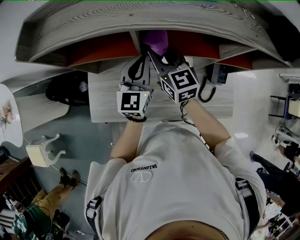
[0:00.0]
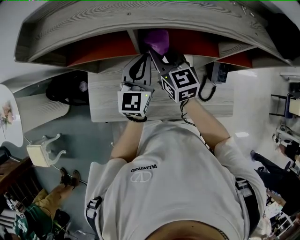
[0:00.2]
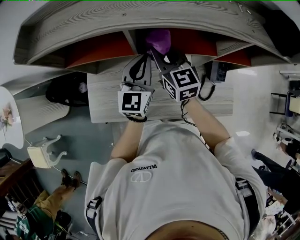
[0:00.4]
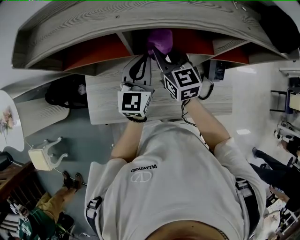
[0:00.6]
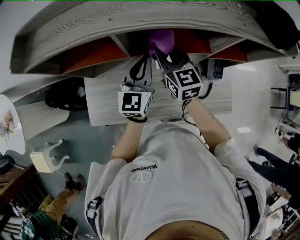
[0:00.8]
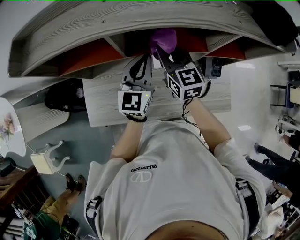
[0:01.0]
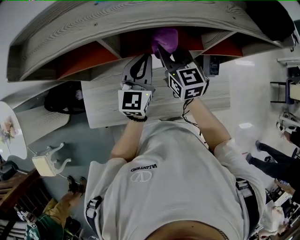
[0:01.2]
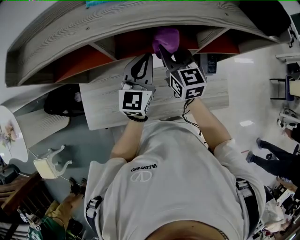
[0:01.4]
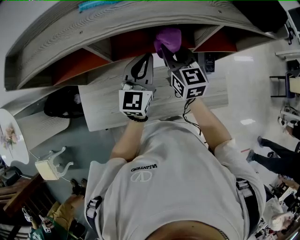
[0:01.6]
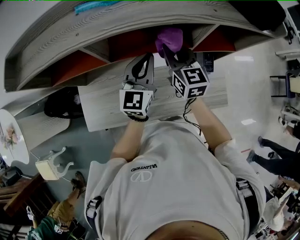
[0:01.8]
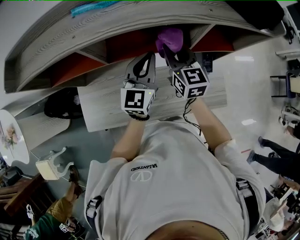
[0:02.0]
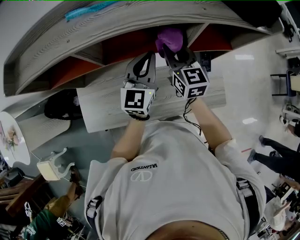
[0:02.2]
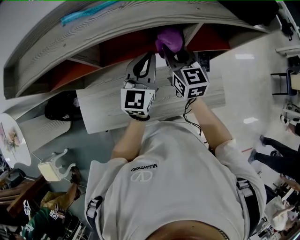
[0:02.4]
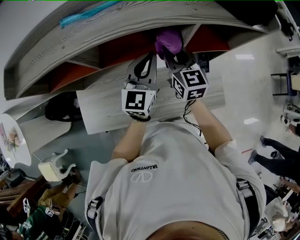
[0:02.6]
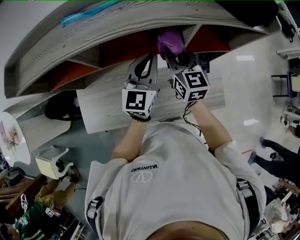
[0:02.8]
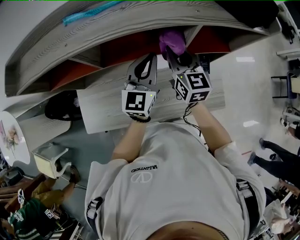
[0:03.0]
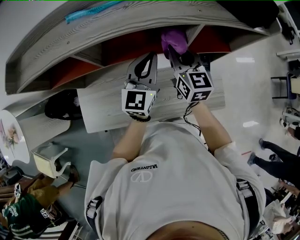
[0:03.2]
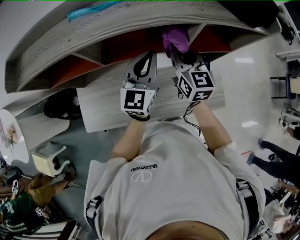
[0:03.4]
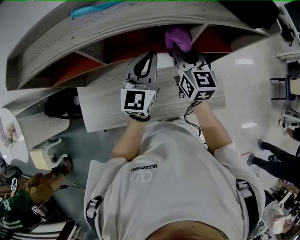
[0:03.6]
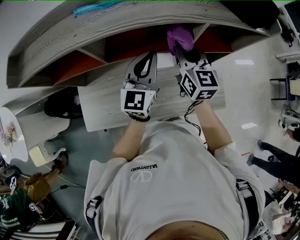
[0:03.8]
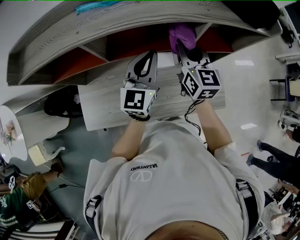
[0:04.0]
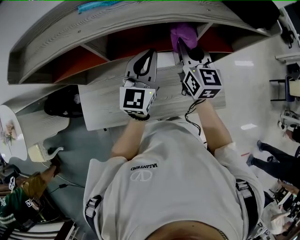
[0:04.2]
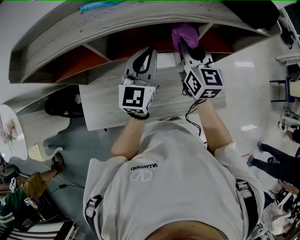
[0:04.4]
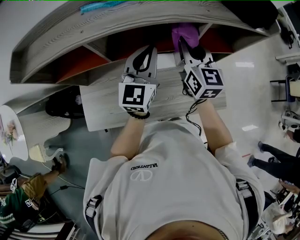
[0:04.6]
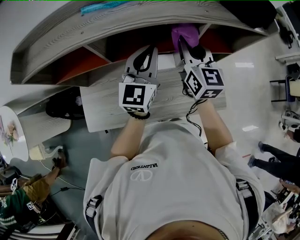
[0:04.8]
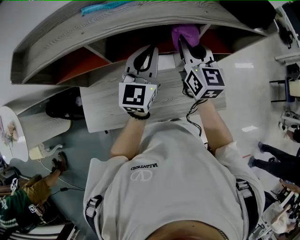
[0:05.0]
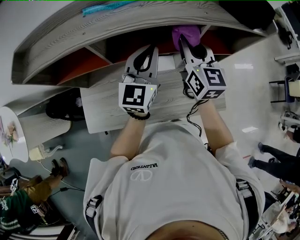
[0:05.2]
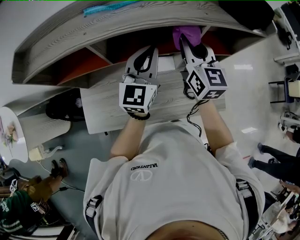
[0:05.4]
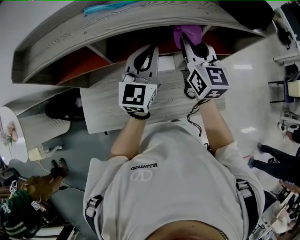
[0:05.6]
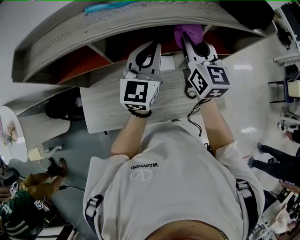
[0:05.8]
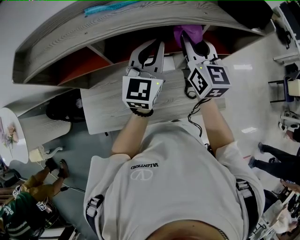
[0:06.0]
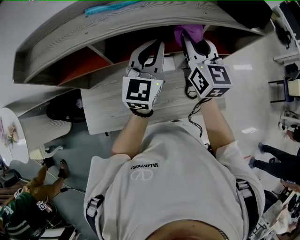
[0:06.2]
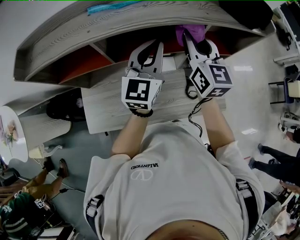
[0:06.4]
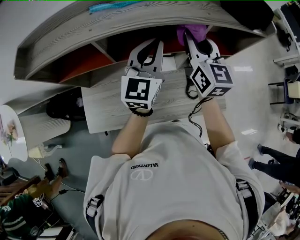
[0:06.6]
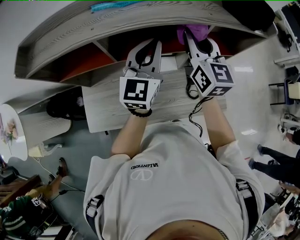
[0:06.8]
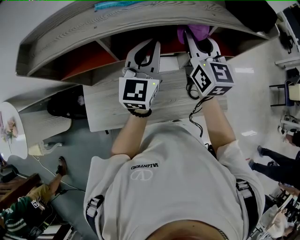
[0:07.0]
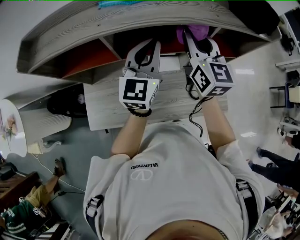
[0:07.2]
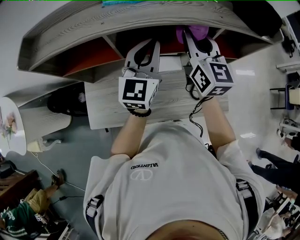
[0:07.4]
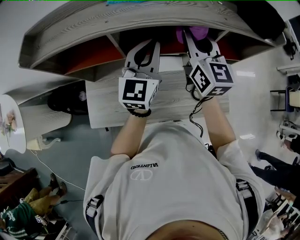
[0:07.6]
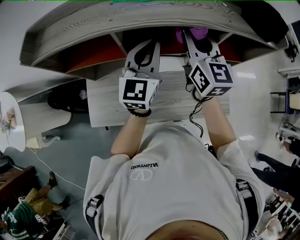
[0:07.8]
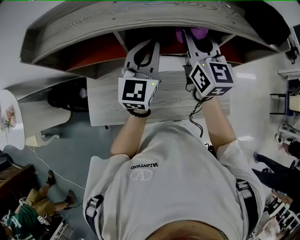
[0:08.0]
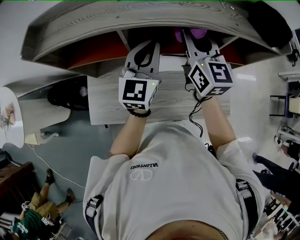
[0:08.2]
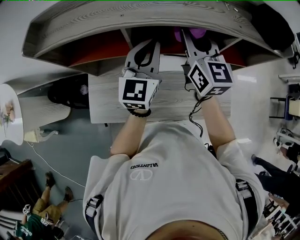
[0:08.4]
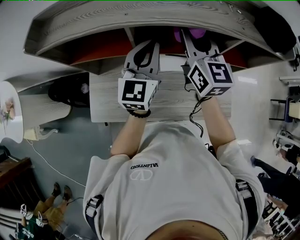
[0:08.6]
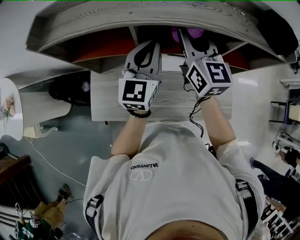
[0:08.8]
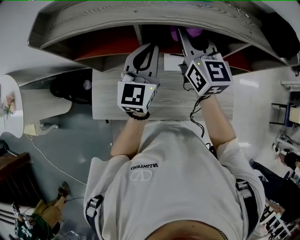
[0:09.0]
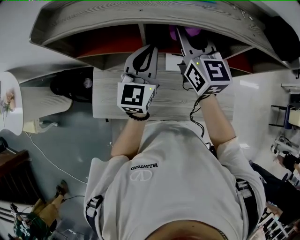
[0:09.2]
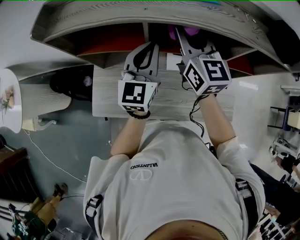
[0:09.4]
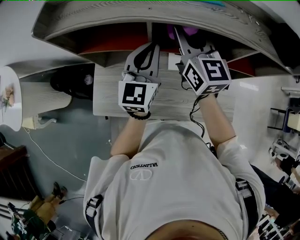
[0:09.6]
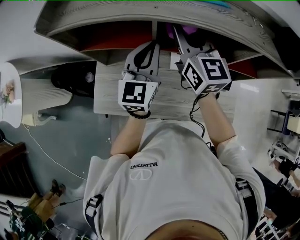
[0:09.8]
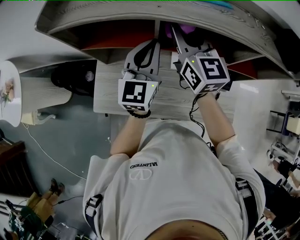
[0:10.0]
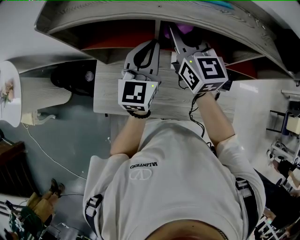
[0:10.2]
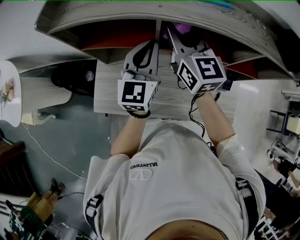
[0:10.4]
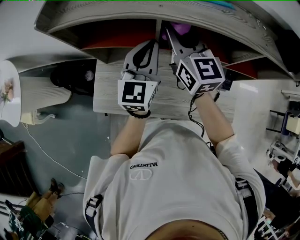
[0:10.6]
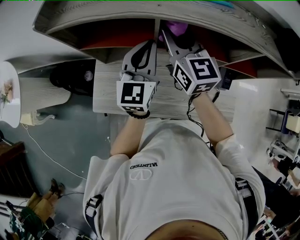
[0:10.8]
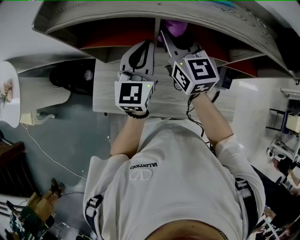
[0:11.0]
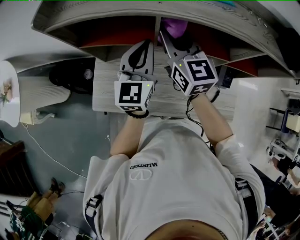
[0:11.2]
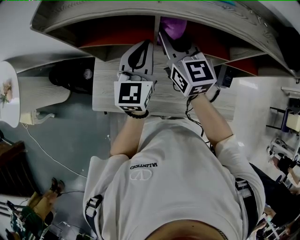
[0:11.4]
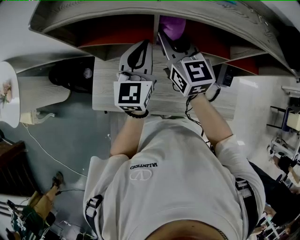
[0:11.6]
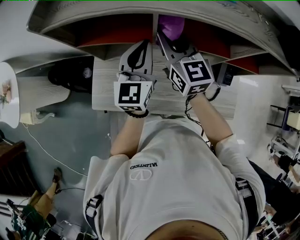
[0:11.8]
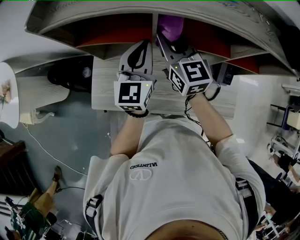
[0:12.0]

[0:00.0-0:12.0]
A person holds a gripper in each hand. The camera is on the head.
0:00.0 to 0:01.6: Both grippers move to the right, some 15 cm.
0:01.6 to 0:03.0: The two grippers go some 5 cm to the right.
0:03.0 to 0:04.4: The left gripper changes place by approximately 5 cm.
0:04.4 to 0:06.0: The left gripper shifts by some 5 cm; the right gripper travels upward by some 5 cm.
0:06.0 to 0:07.6: Both grippers travel together to the left, about 5 cm.
0:07.6 to 0:09.0: Both grippers move to the left, about 10 cm.
0:09.0 to 0:10.4: The left gripper goes approximately 5 cm to the left. The right gripper is displaced to the left by about 10 cm.
0:10.4 to 0:12.0: The right gripper is displaced downward by roughly 5 cm.

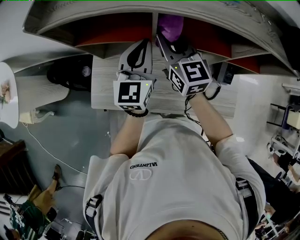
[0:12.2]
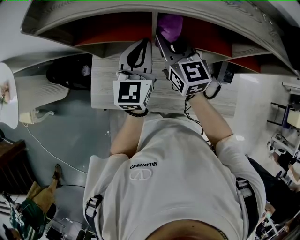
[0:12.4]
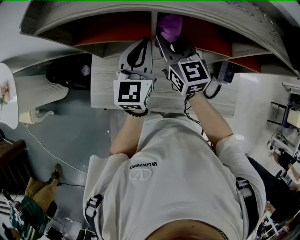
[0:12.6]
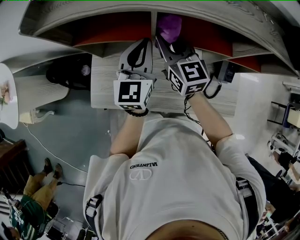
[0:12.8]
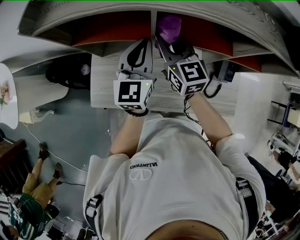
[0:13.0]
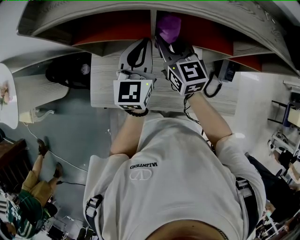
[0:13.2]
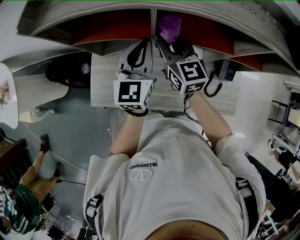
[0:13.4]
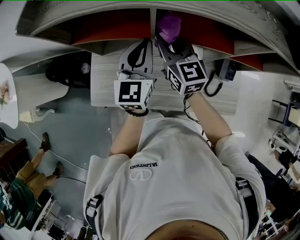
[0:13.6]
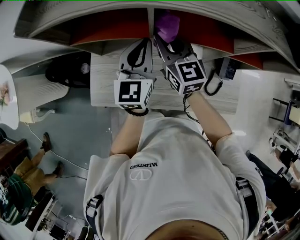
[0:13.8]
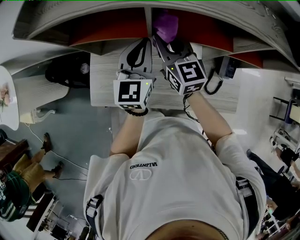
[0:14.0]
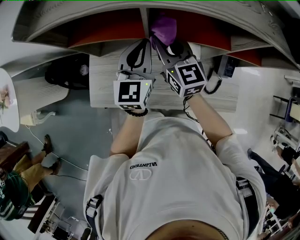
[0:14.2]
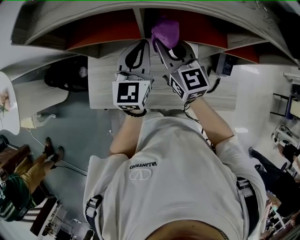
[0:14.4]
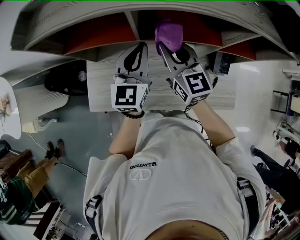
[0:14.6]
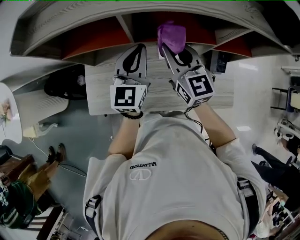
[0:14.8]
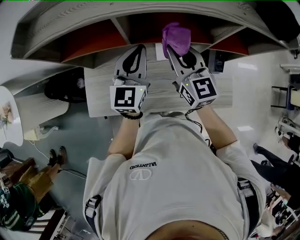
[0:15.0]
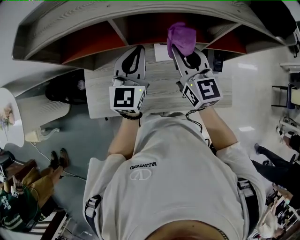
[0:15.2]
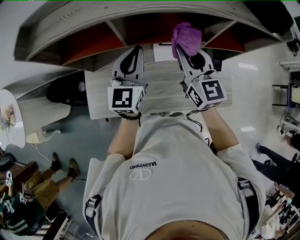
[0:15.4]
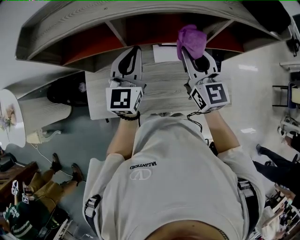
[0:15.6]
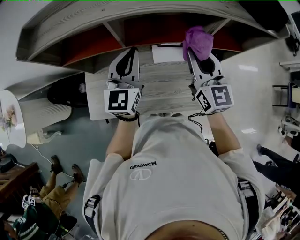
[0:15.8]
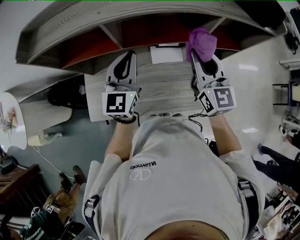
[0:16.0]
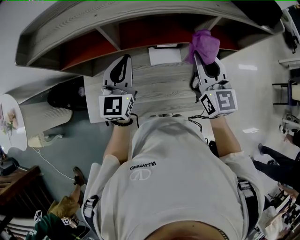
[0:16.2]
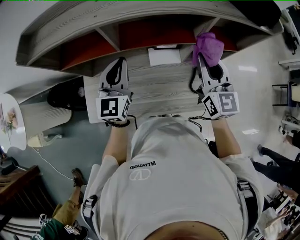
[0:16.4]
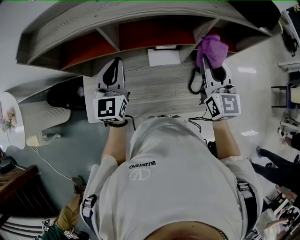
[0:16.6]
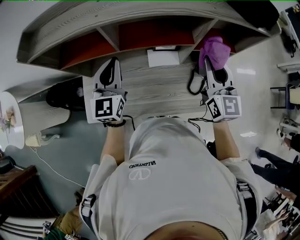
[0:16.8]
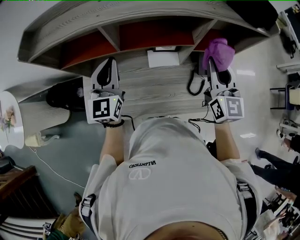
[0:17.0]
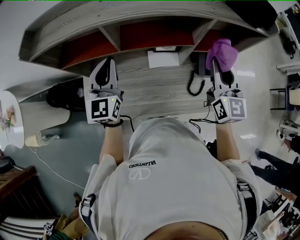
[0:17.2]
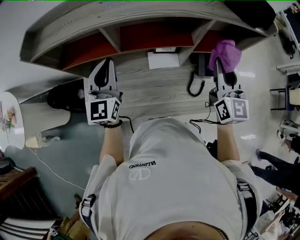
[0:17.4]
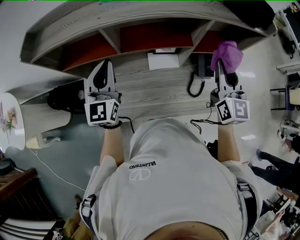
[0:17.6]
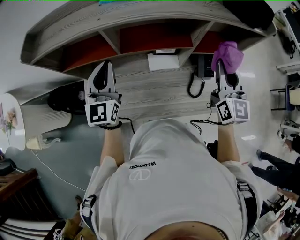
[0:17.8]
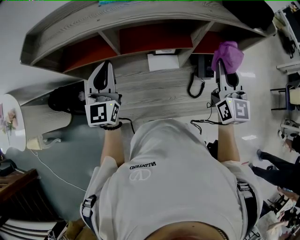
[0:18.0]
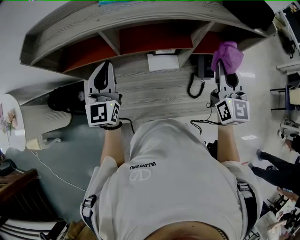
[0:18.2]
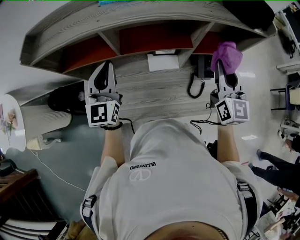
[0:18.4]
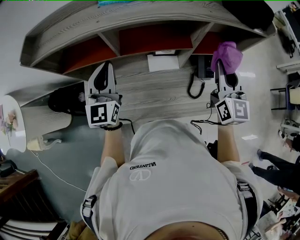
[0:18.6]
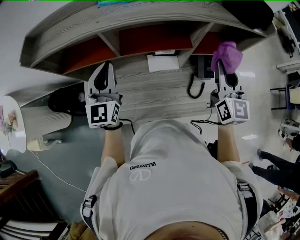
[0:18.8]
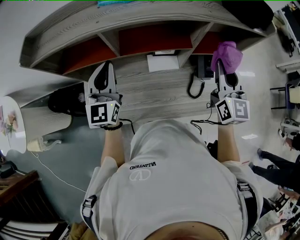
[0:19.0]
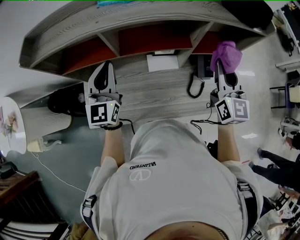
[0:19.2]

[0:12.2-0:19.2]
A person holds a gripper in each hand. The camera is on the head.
0:12.2 to 0:13.6: The grippers stay close to where they were, moving slightly.
0:13.6 to 0:15.0: The right gripper is displaced to the right and backward by roughly 15 cm; the left gripper goes roughly 5 cm to the right.
0:15.0 to 0:16.4: The right gripper travels to the right by approximately 15 cm.
0:16.4 to 0:17.8: The left gripper shifts by roughly 5 cm. The right gripper shifts some 5 cm to the right.
0:17.8 to 0:19.2: The two grippers keep their place.

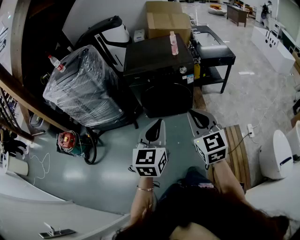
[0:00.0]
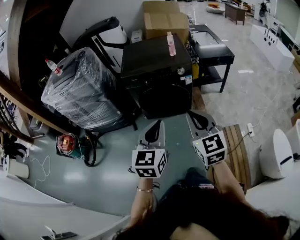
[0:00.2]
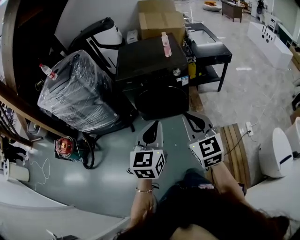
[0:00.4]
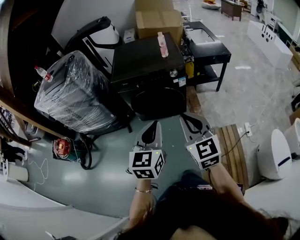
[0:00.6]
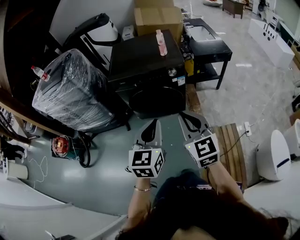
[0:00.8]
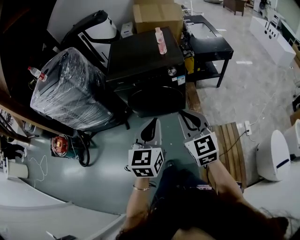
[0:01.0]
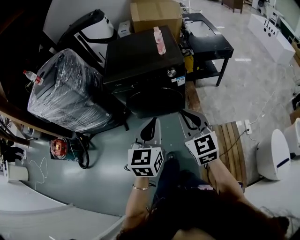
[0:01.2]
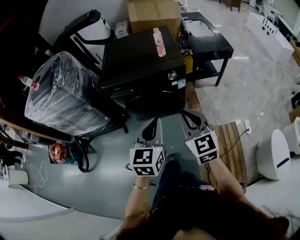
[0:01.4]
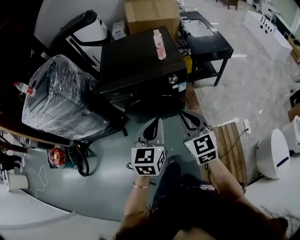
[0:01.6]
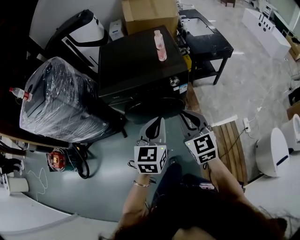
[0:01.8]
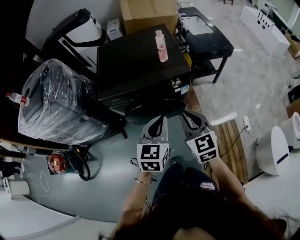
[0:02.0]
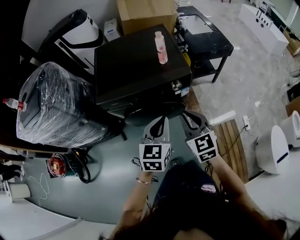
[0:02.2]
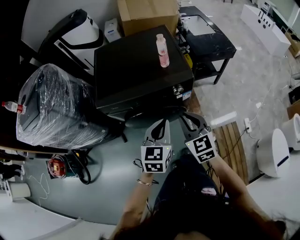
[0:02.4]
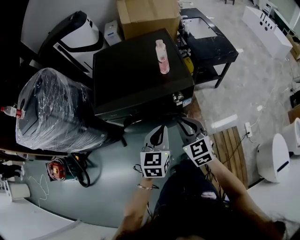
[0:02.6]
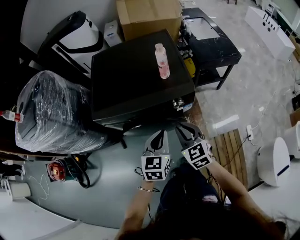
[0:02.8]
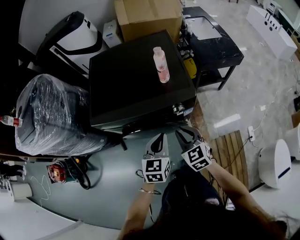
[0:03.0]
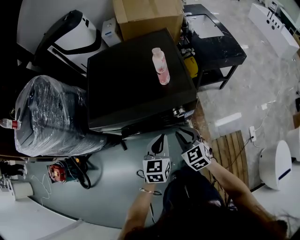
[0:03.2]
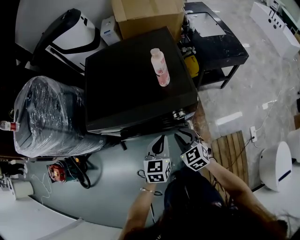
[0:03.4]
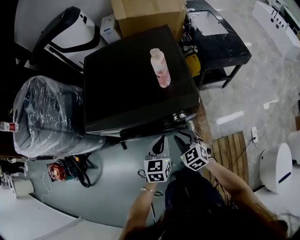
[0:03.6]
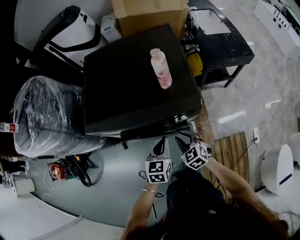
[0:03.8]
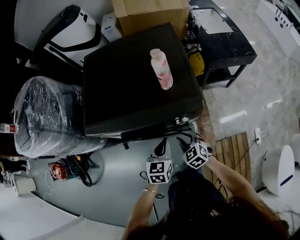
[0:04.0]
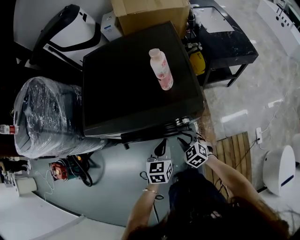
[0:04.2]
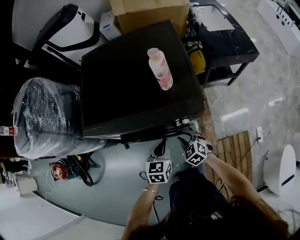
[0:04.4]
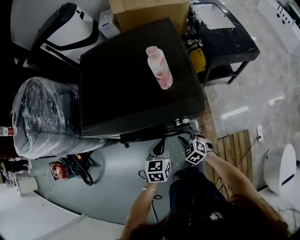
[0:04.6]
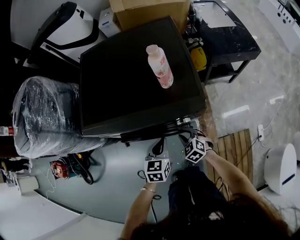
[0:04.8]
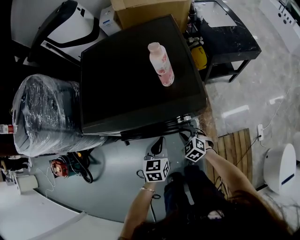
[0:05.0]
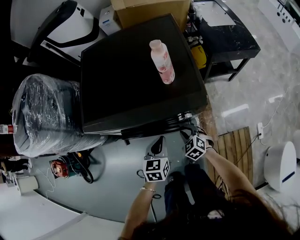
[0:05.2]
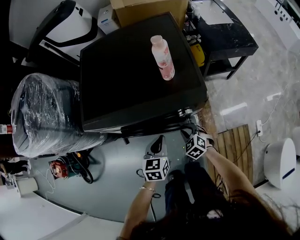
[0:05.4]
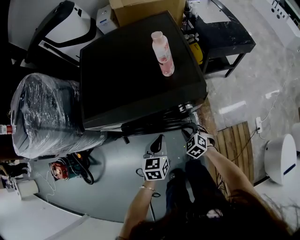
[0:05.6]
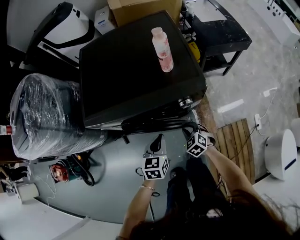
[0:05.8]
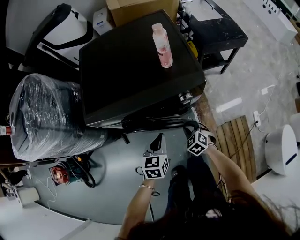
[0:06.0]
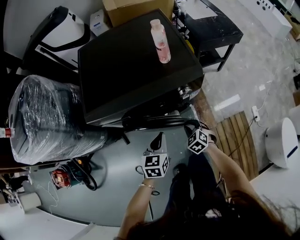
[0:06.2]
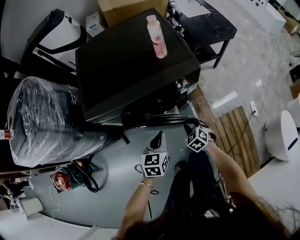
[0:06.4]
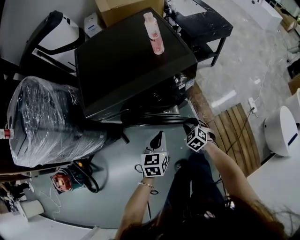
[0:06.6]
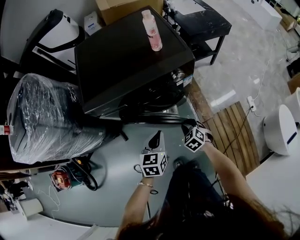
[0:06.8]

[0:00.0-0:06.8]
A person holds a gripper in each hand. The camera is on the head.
0:00.0 to 0:01.4: The grippers both shift forward by roughly 20 cm.
0:01.4 to 0:02.8: Both grippers move forward and downward, approximately 25 cm.
0:02.8 to 0:04.0: The right gripper shifts roughly 20 cm downward. Meanwhile the left gripper shifts about 15 cm downward and forward.
0:04.0 to 0:05.4: The right gripper is displaced downward by about 5 cm.
0:05.4 to 0:06.8: Both grippers move backward, roughly 15 cm.
